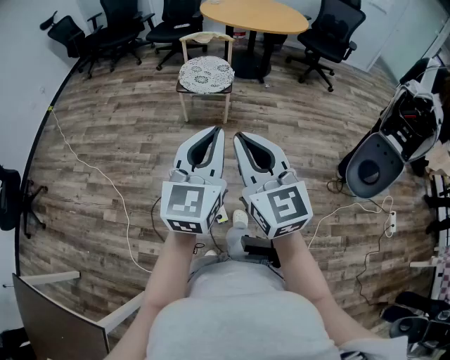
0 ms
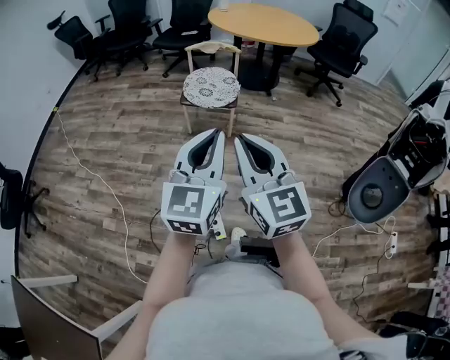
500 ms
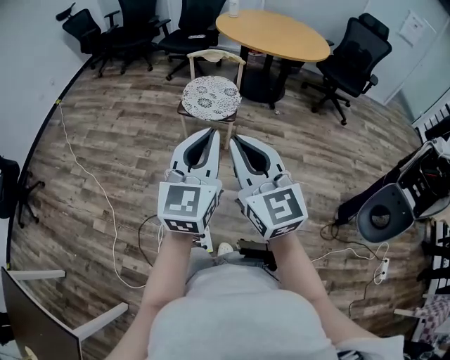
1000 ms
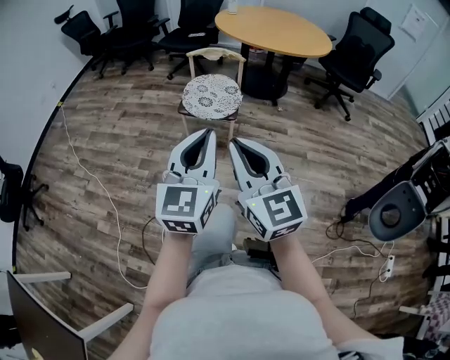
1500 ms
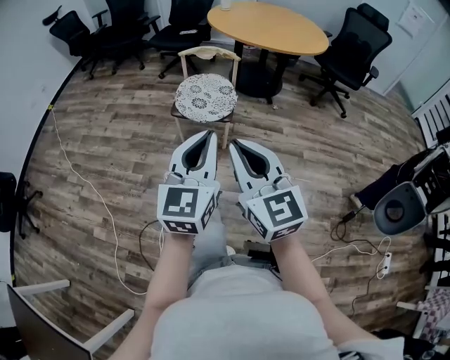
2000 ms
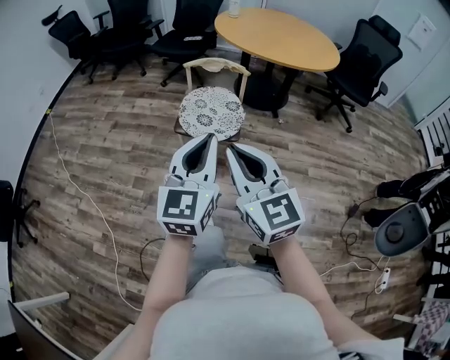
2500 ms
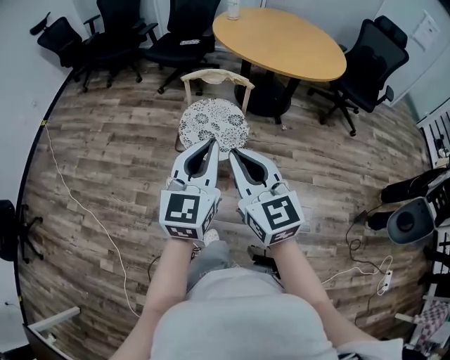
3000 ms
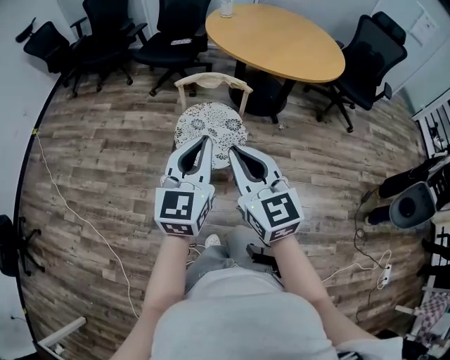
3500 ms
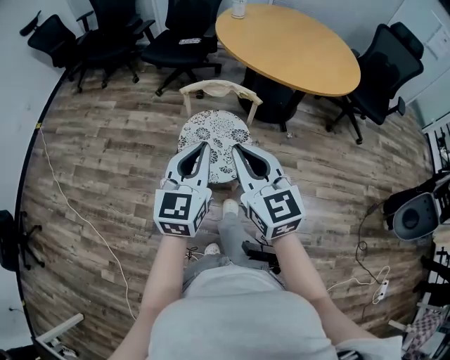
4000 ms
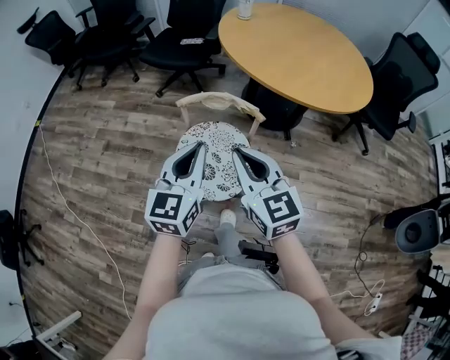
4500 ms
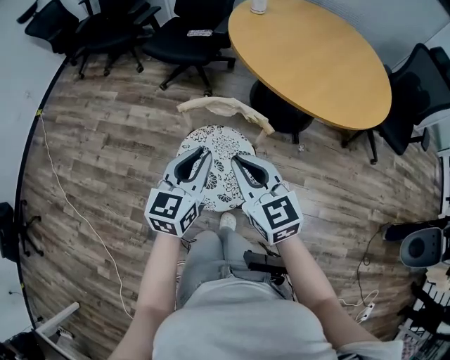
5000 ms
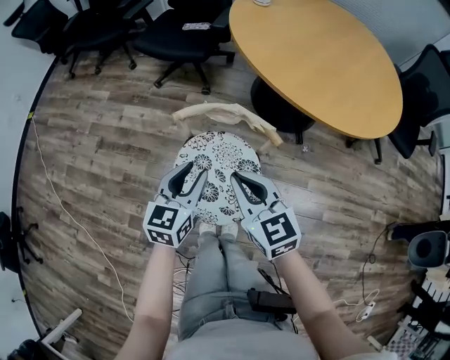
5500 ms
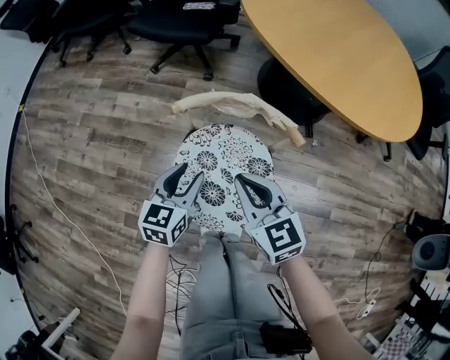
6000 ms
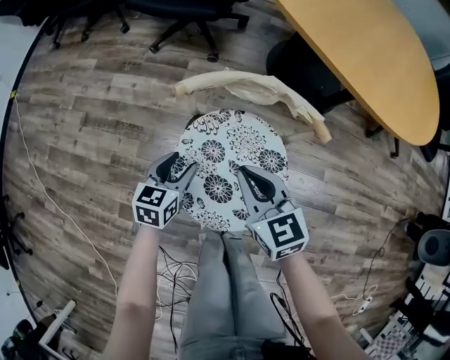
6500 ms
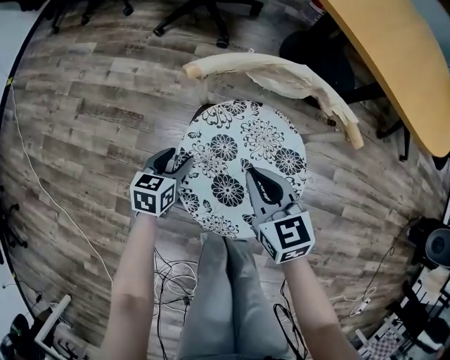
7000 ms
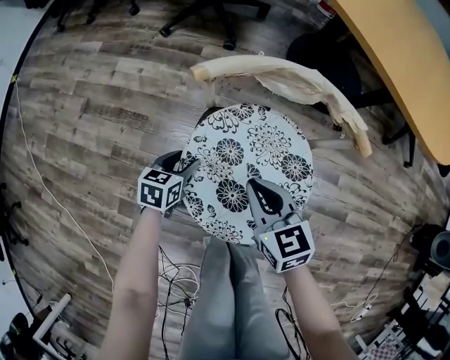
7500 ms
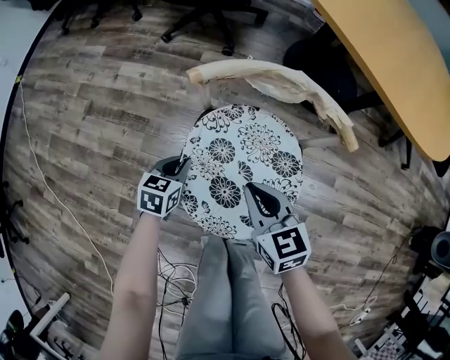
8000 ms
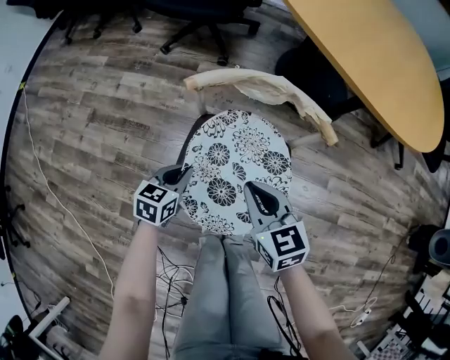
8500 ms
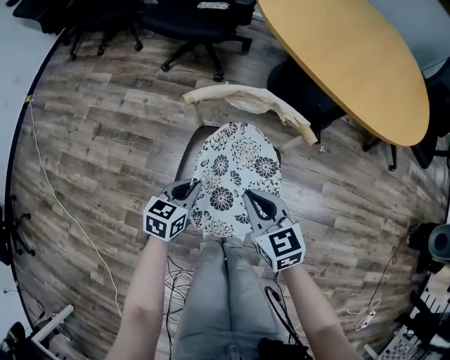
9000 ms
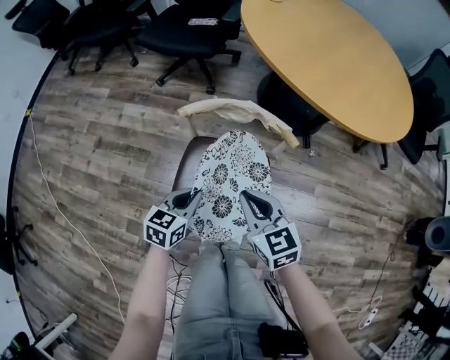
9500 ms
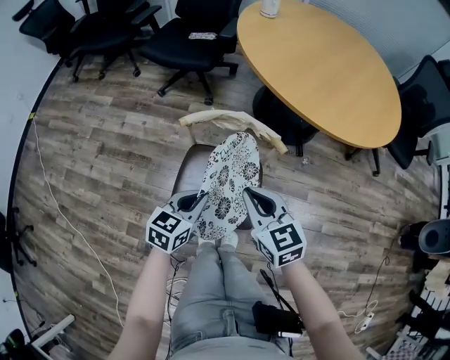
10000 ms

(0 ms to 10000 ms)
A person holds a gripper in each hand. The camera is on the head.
0 ms - 2000 ms: Both grippers move forward, approximately 25 cm.
2000 ms - 4000 ms: Both grippers are carried forward, some 40 cm.
4000 ms - 6000 ms: The two grippers go roughly 40 cm downward and forward. The left gripper swivels roughly 20 degrees, and opens up. Meanwhile the right gripper turns by roughly 20 degrees.
6000 ms - 8000 ms: Both grippers move downward, some 20 cm. The left gripper changes its angle by about 20 degrees, and closes up.
8000 ms - 10000 ms: The right gripper travels upward by approximately 20 cm. Meanwhile the left gripper is displaced upward and to the right by about 30 cm, and swivels some 20 degrees.

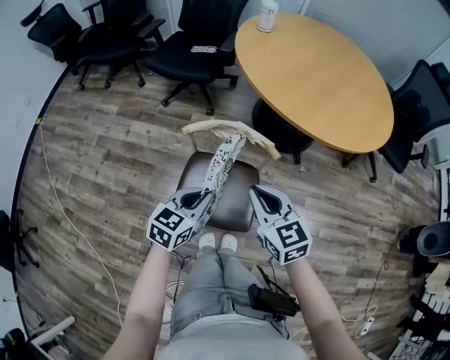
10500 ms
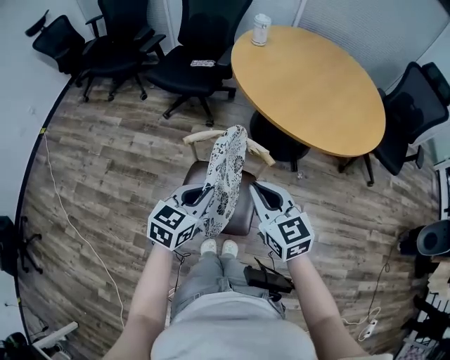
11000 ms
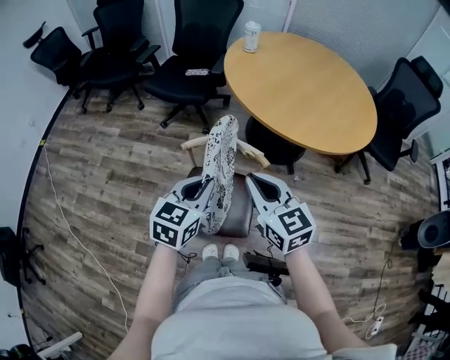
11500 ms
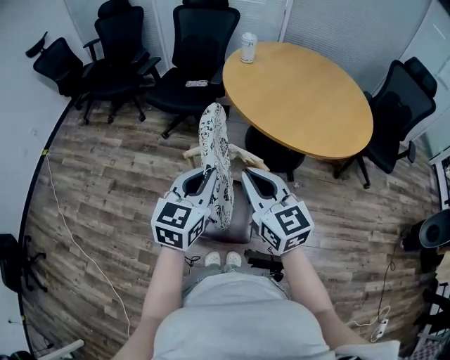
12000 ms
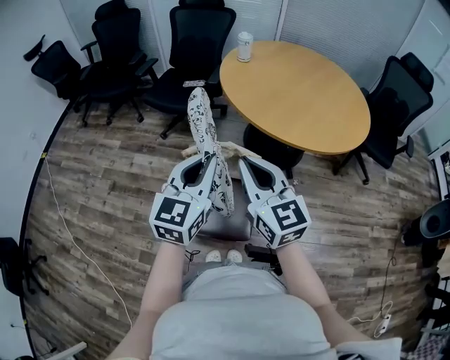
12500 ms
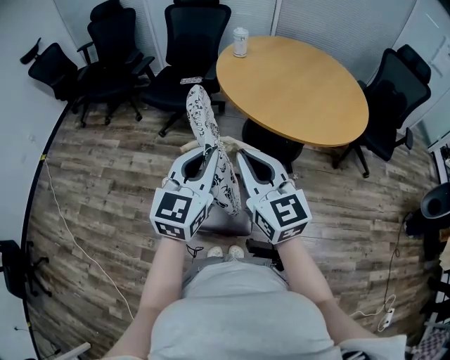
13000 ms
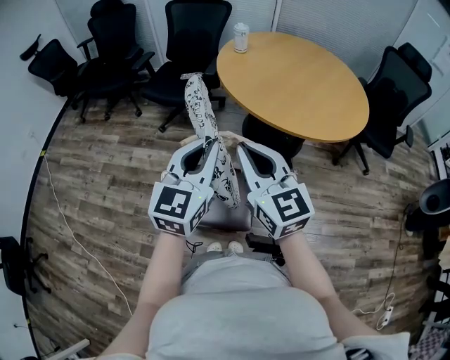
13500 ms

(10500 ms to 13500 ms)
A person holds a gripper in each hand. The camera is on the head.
10500 ms - 12000 ms: Both grippers travel together upward, about 20 cm. The left gripper rotates some 20 degrees.
12000 ms - 13500 ms: The left gripper heads upward, covering about 5 cm.

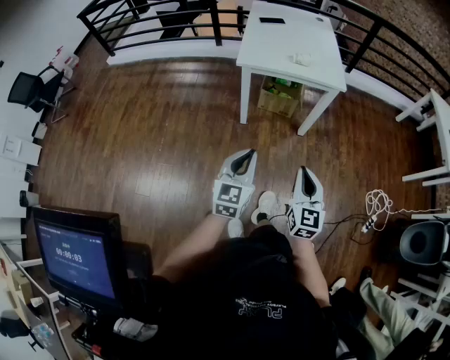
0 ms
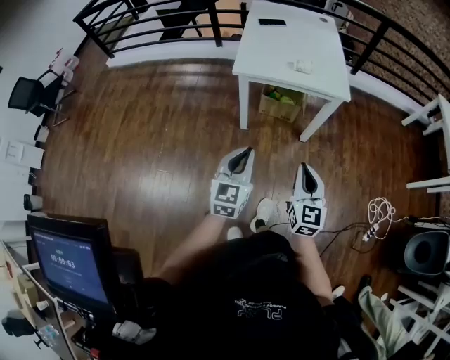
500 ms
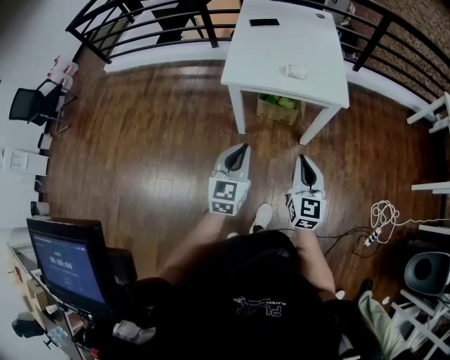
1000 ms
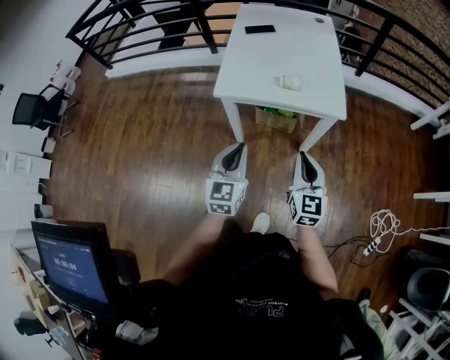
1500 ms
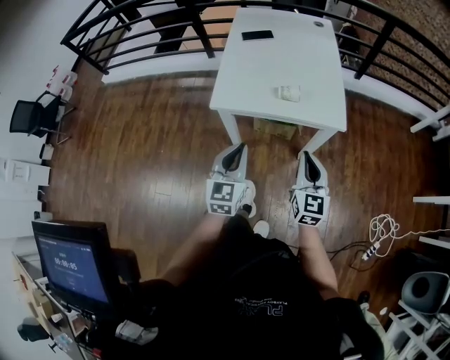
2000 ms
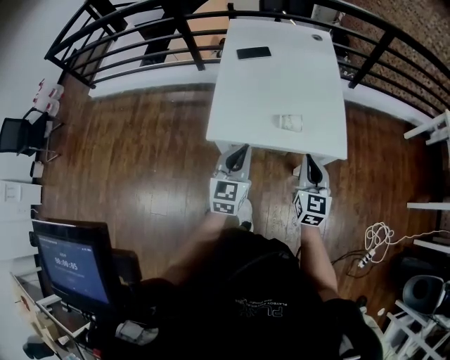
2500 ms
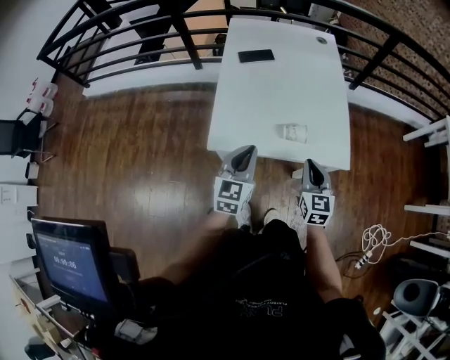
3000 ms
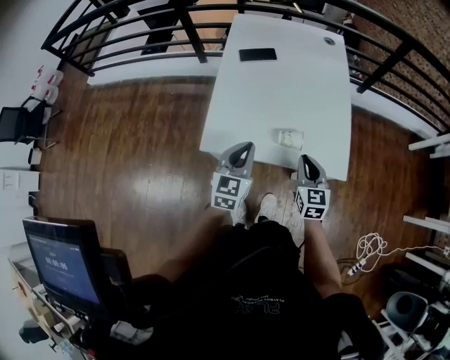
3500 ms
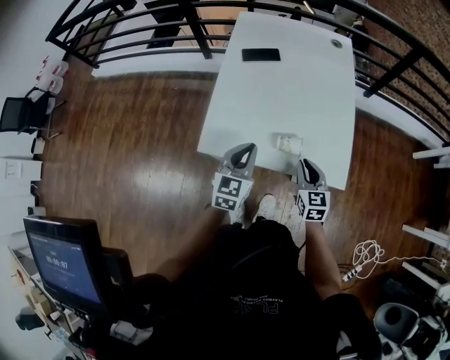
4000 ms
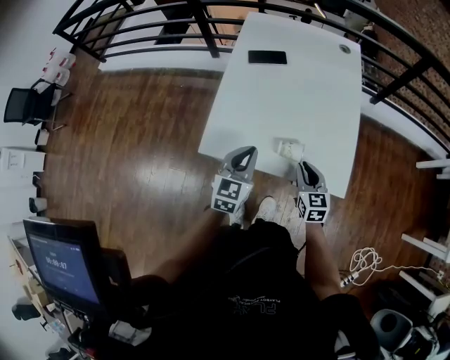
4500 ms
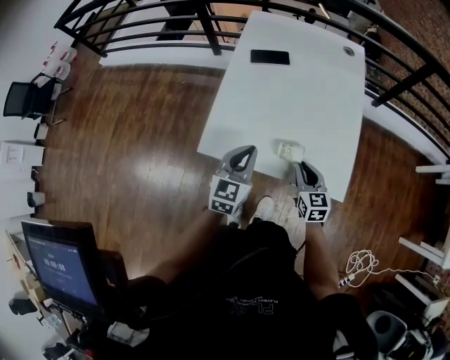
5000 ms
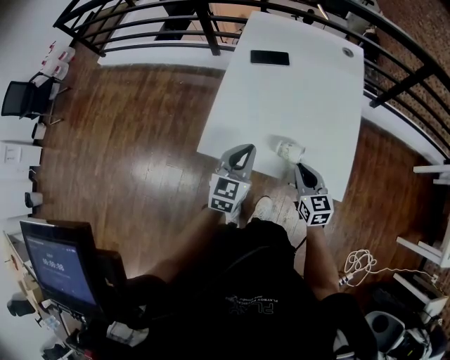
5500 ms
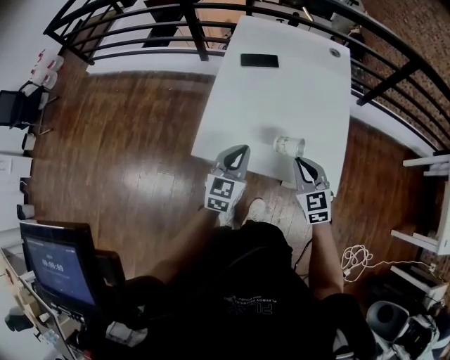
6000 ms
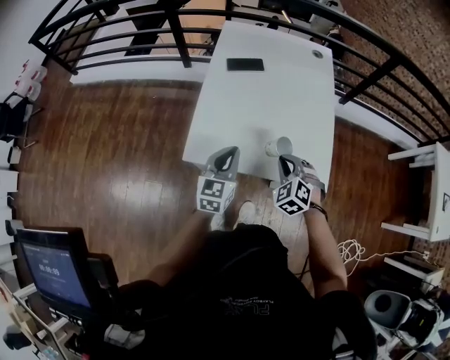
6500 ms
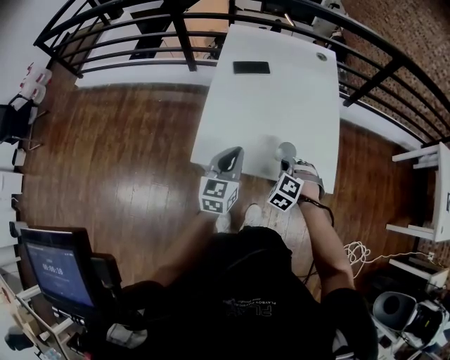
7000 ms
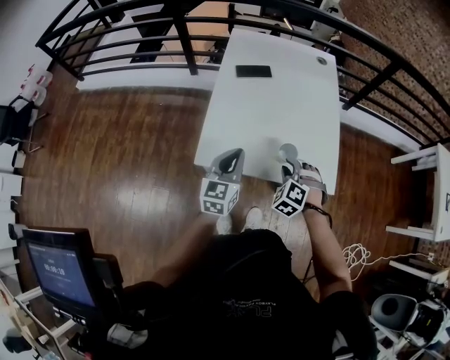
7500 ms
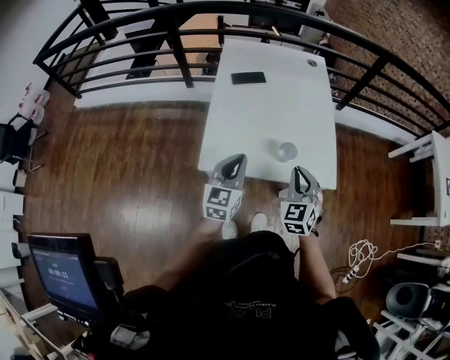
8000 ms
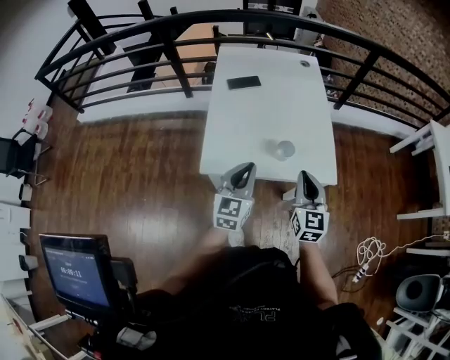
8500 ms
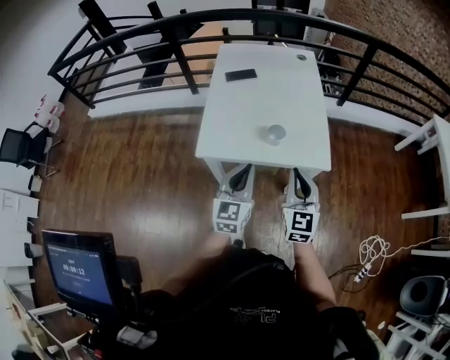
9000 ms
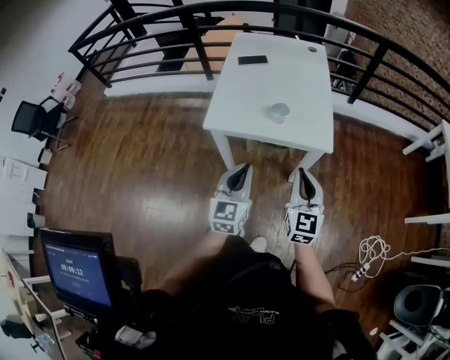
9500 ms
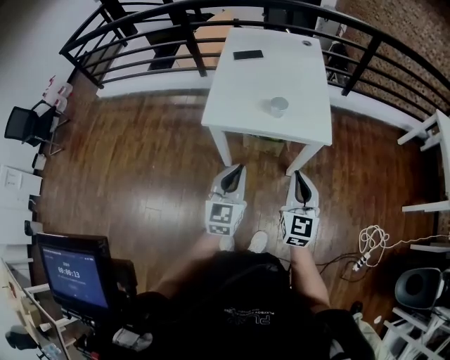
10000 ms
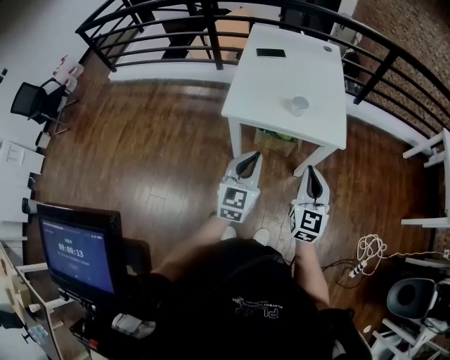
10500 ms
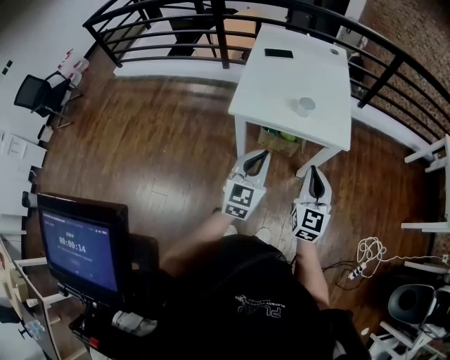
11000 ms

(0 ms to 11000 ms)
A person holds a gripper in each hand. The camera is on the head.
0 ms - 2000 ms: The grippers both shift forward by about 30 cm.
2000 ms - 3500 ms: The right gripper is displaced forward and downward by roughly 25 cm. Meanwhile the left gripper is displaced forward by some 20 cm.
3500 ms - 5500 ms: The grippers make only small movements.
5500 ms - 7500 ms: The right gripper rolls counterclockwise, seen from behind, by about 60 degrees, and opens.
7500 ms - 9000 ms: The left gripper travels backward, to the right and upward by some 15 cm; the right gripper shifts roughly 20 cm upward, backward and to the right, angles its fingers upward, by some 40 degrees, and closes its fingers.
9000 ms - 11000 ms: The grippers both shift backward by about 10 cm.

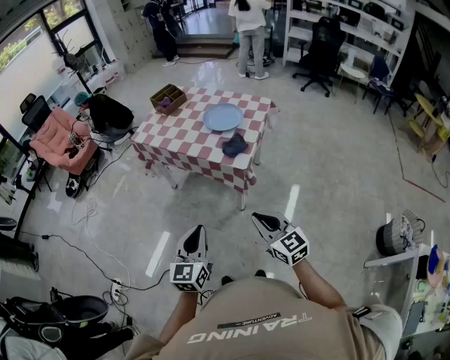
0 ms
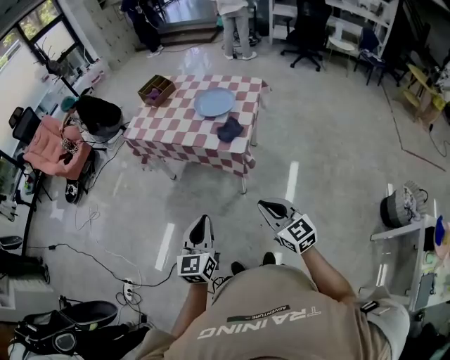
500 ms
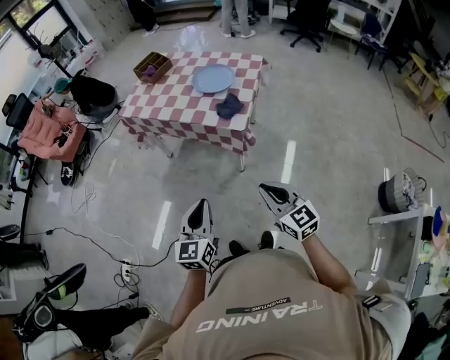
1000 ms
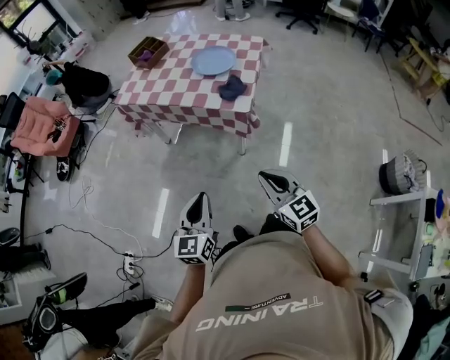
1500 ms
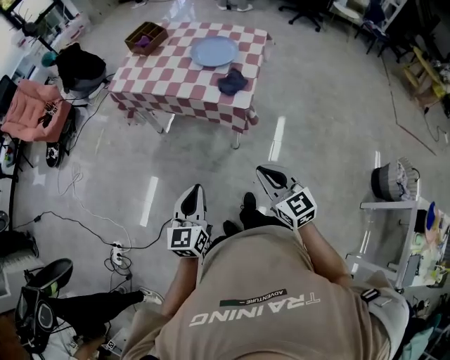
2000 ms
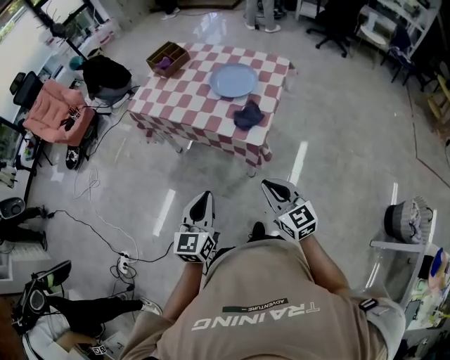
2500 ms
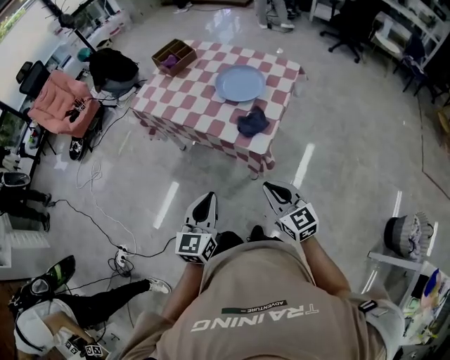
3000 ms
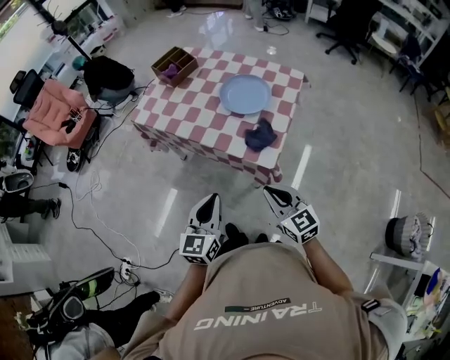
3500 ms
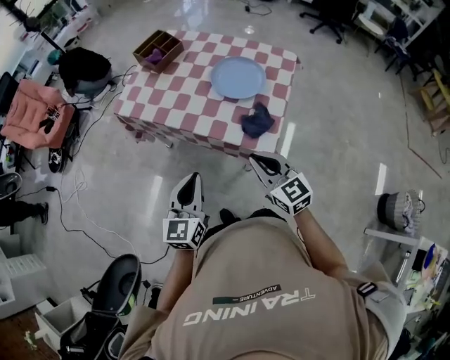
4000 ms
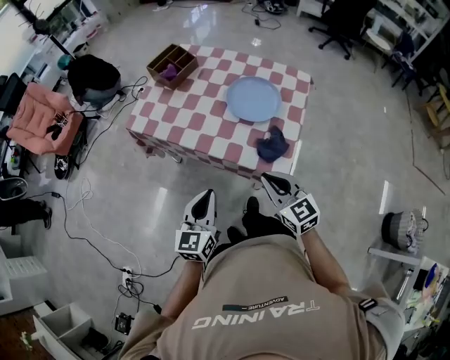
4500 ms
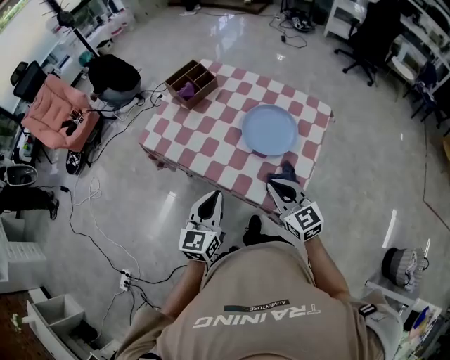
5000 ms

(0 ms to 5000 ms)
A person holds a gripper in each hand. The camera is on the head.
0 ms - 2500 ms: Both grippers travel together forward, approximately 15 cm.
2500 ms - 5000 ms: The grippers both shift forward by approximately 30 cm.
